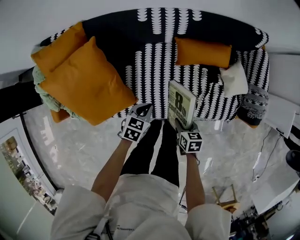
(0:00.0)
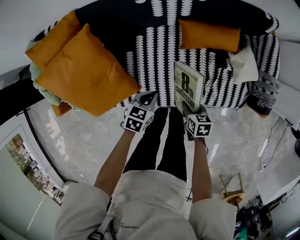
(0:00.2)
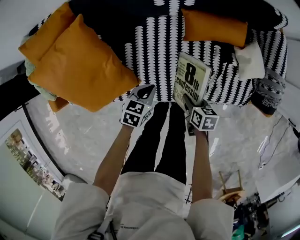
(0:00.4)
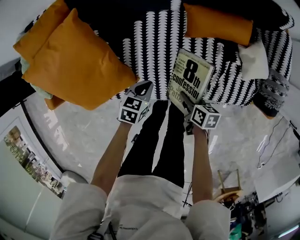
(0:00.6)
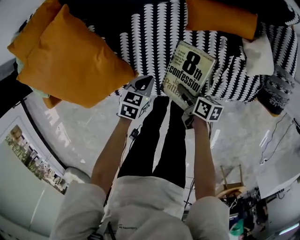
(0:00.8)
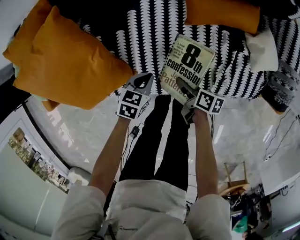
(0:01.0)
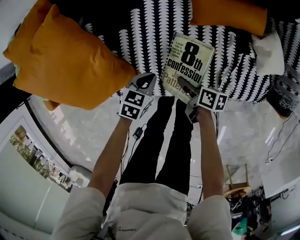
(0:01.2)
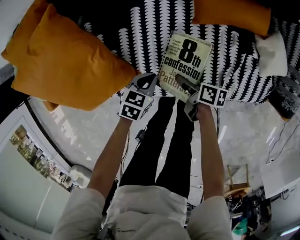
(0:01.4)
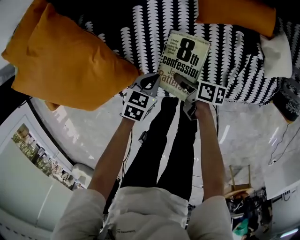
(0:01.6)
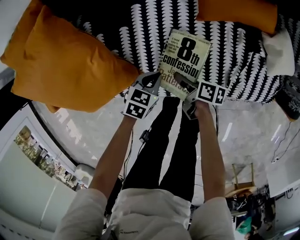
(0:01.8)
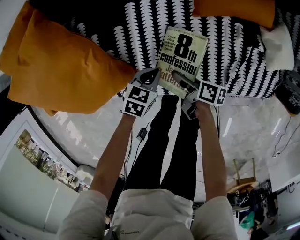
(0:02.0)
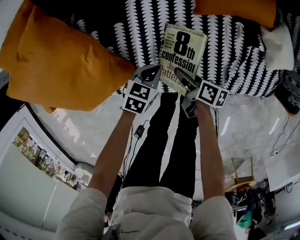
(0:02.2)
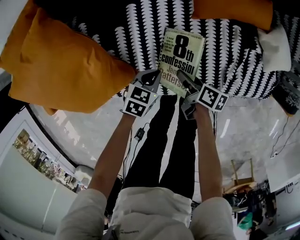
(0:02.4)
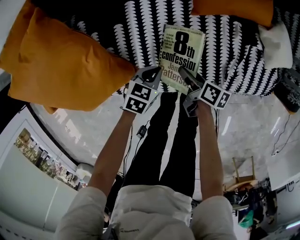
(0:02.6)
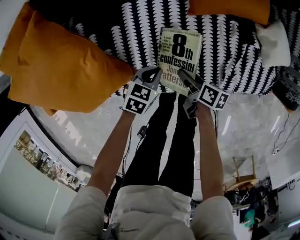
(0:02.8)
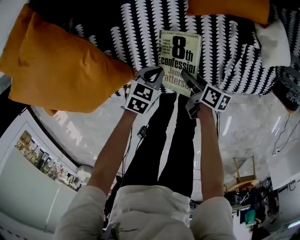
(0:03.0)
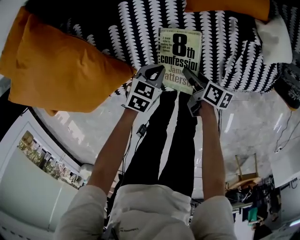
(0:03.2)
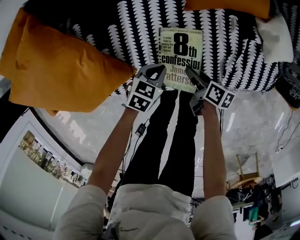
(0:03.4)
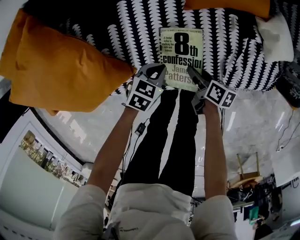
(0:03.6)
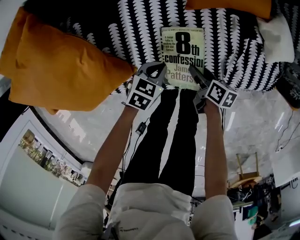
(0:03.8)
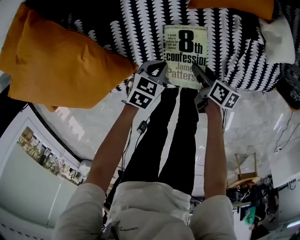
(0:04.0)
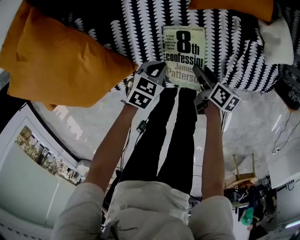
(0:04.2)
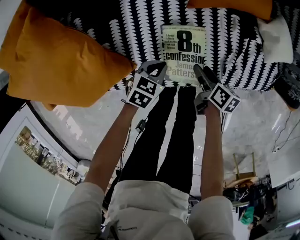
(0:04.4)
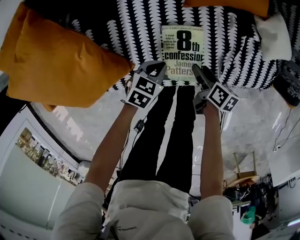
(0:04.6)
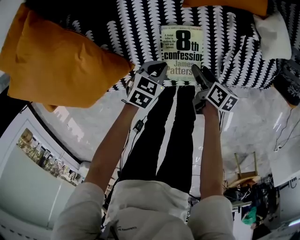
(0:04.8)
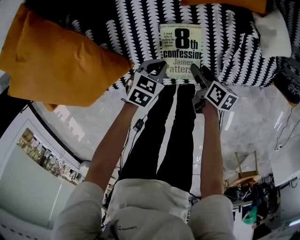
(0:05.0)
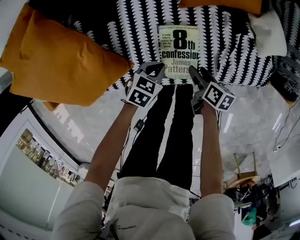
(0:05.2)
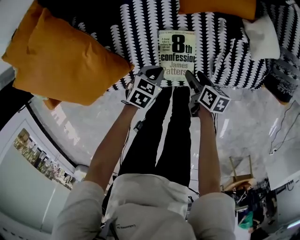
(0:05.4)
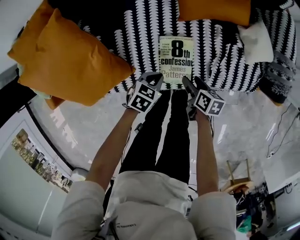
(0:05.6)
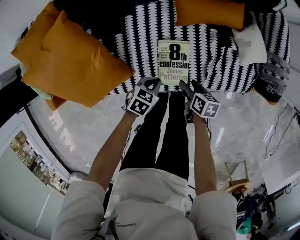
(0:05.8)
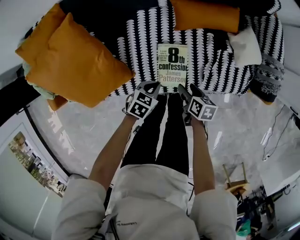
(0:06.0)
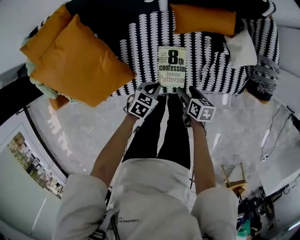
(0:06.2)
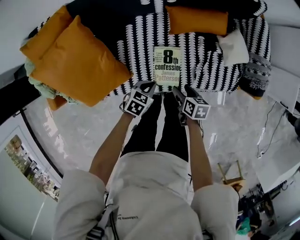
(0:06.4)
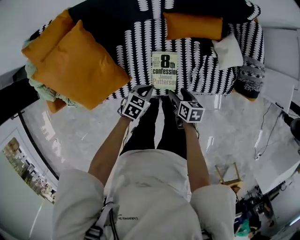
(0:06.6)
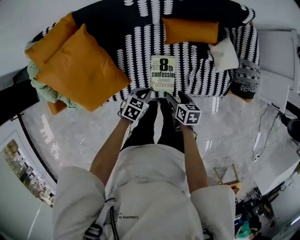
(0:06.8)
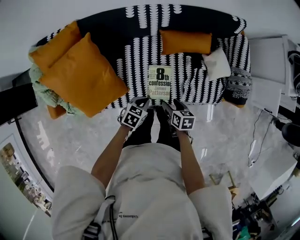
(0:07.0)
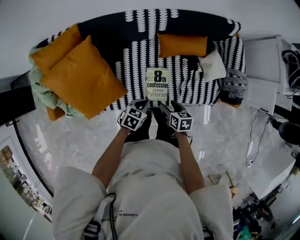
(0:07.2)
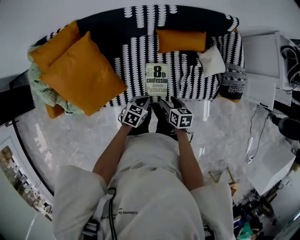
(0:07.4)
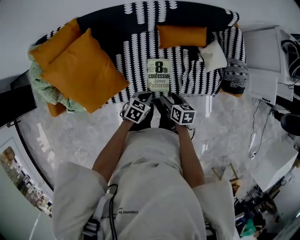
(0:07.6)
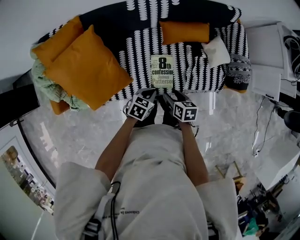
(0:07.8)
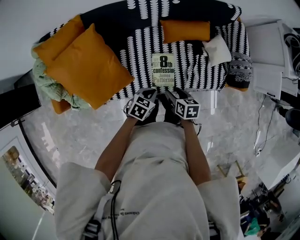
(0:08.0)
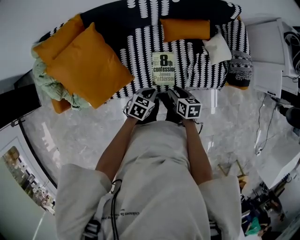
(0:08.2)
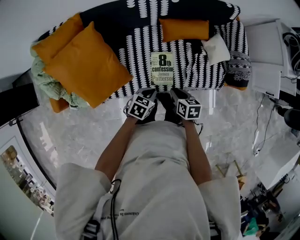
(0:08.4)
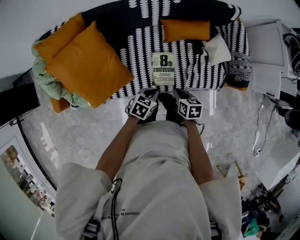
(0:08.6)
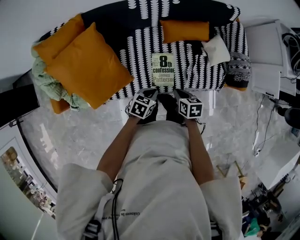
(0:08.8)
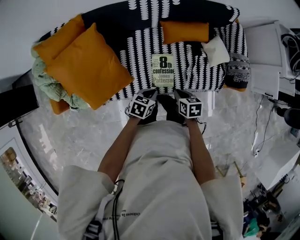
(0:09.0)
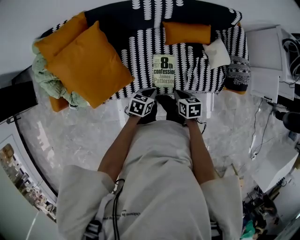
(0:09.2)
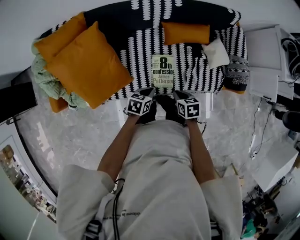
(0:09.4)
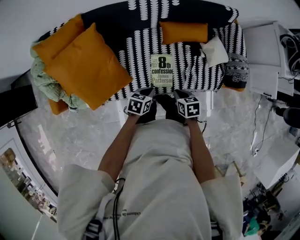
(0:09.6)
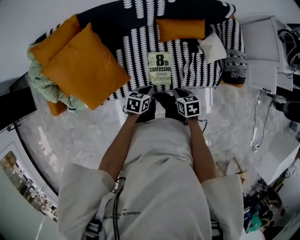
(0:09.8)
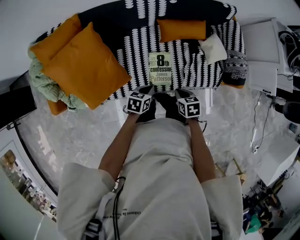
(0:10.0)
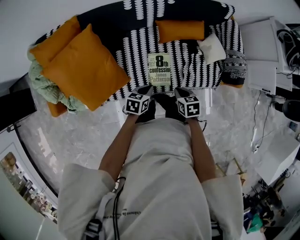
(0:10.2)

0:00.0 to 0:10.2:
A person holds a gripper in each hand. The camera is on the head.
0:00.0 to 0:01.4: The right gripper moves downward, to the left and forward, about 20 cm, and turns by about 40 degrees, while the left gripper is displaced downward and to the left by about 15 cm.
0:01.4 to 0:03.0: The right gripper moves to the right, approximately 10 cm, while the left gripper shifts about 10 cm to the right and downward.
0:03.0 to 0:04.4: The right gripper travels to the right by about 5 cm.
0:04.4 to 0:05.8: The grippers both shift upward by some 10 cm.
0:05.8 to 0:07.2: Both grippers move upward, roughly 15 cm.
0:07.2 to 0:08.8: The right gripper closes.
0:08.8 to 0:10.2: The grippers make only small movements.

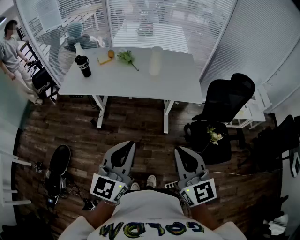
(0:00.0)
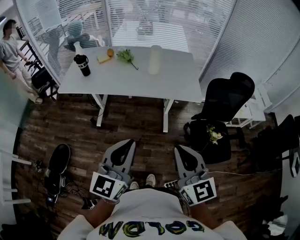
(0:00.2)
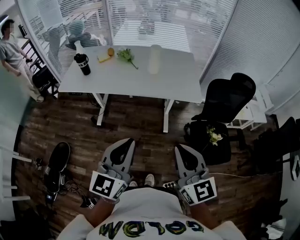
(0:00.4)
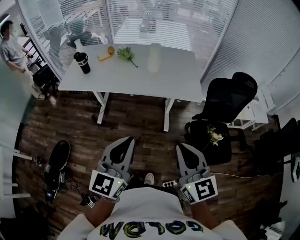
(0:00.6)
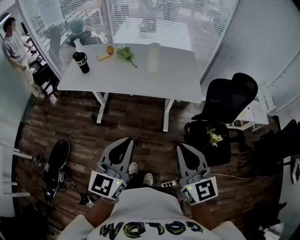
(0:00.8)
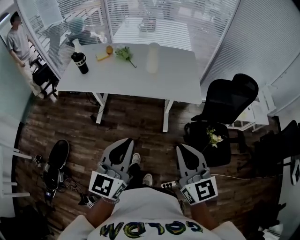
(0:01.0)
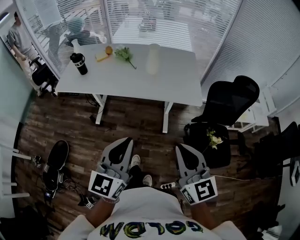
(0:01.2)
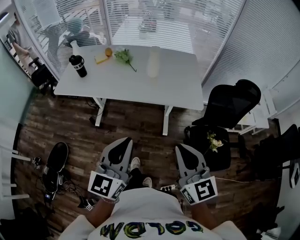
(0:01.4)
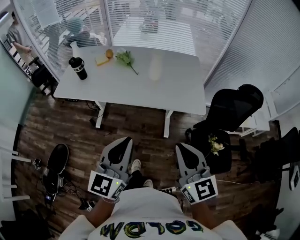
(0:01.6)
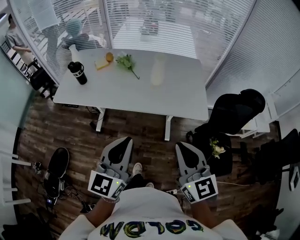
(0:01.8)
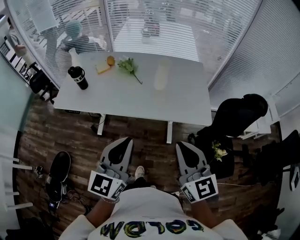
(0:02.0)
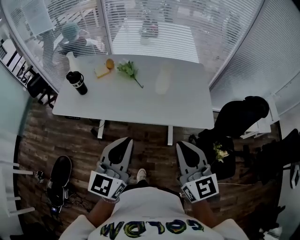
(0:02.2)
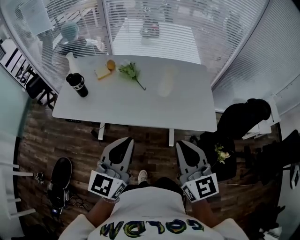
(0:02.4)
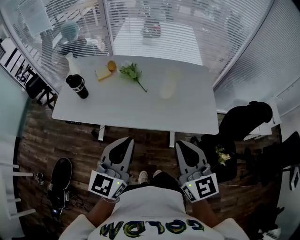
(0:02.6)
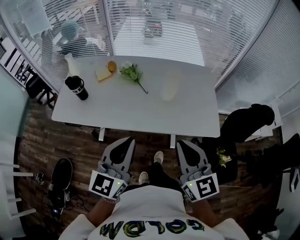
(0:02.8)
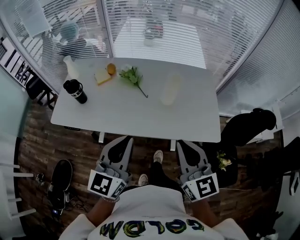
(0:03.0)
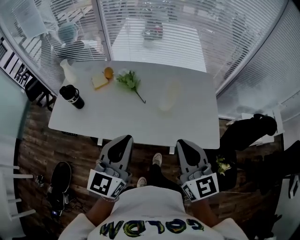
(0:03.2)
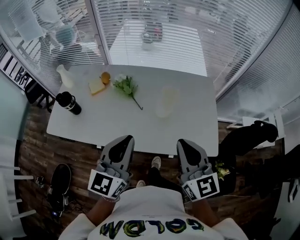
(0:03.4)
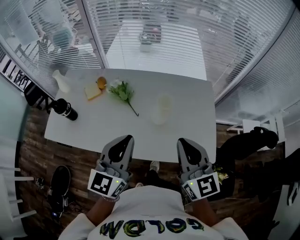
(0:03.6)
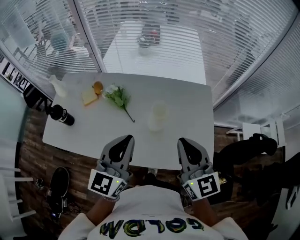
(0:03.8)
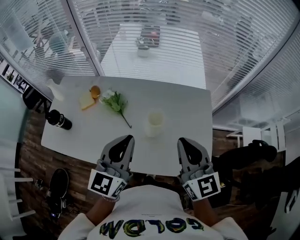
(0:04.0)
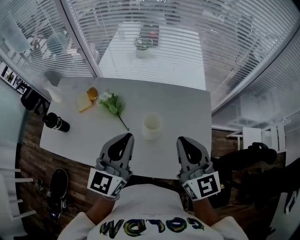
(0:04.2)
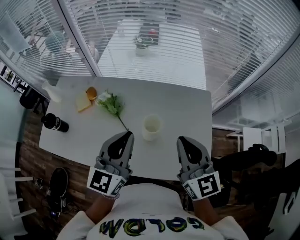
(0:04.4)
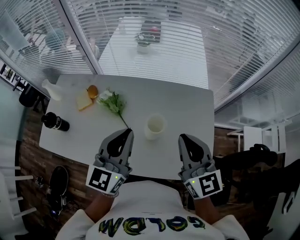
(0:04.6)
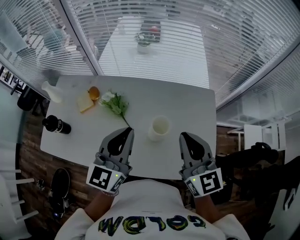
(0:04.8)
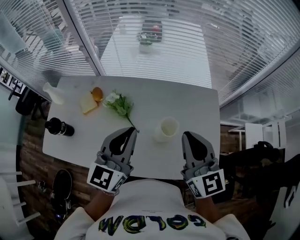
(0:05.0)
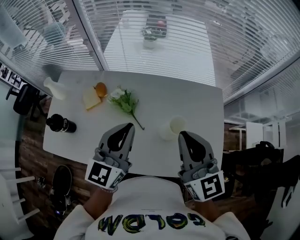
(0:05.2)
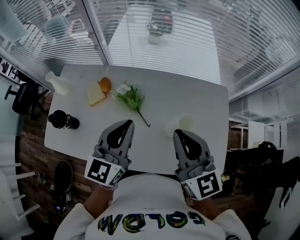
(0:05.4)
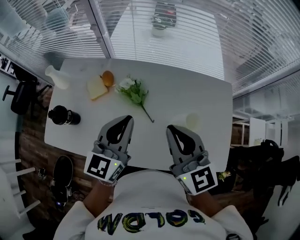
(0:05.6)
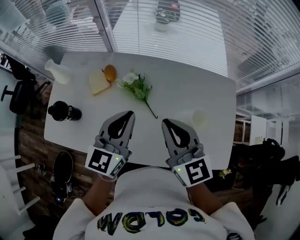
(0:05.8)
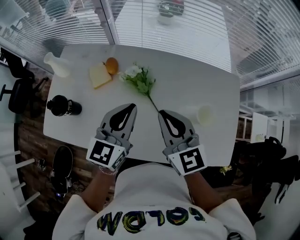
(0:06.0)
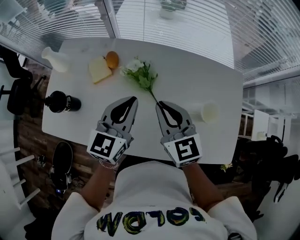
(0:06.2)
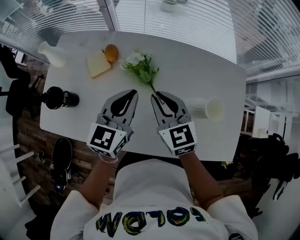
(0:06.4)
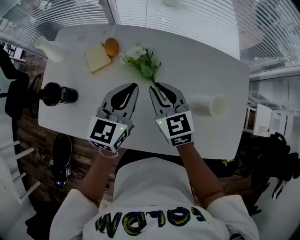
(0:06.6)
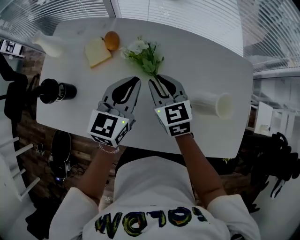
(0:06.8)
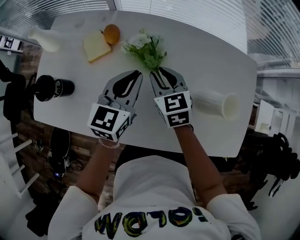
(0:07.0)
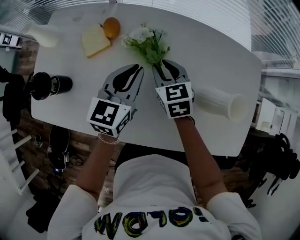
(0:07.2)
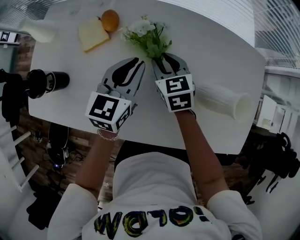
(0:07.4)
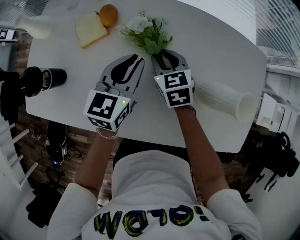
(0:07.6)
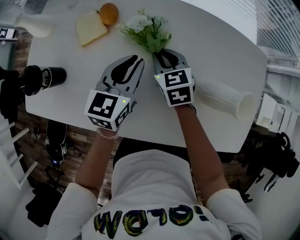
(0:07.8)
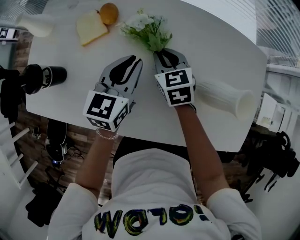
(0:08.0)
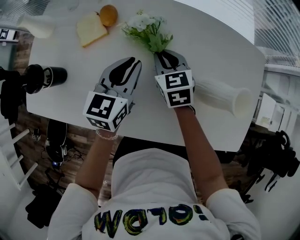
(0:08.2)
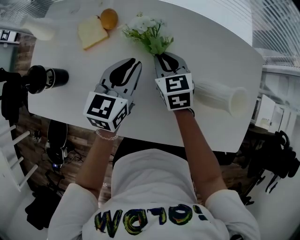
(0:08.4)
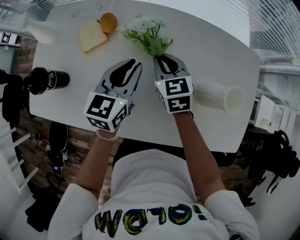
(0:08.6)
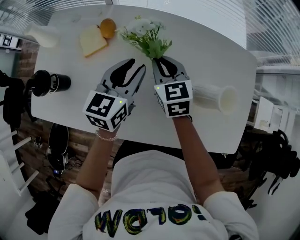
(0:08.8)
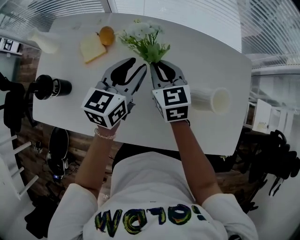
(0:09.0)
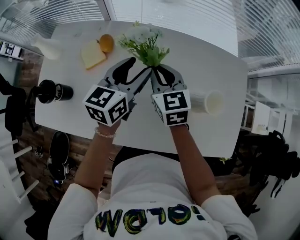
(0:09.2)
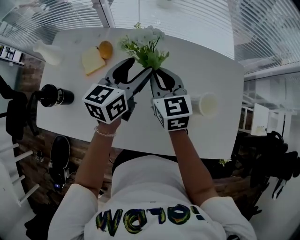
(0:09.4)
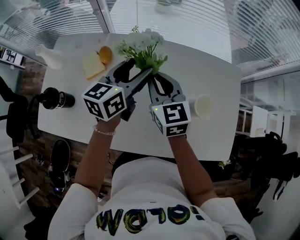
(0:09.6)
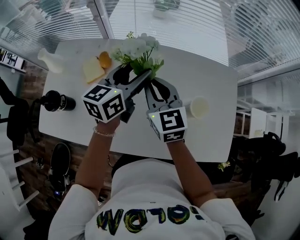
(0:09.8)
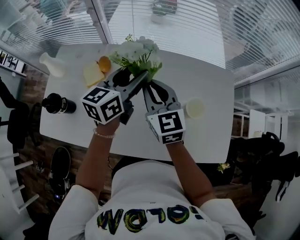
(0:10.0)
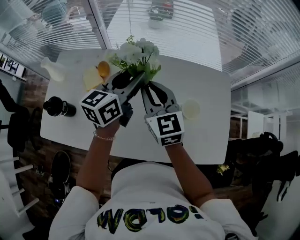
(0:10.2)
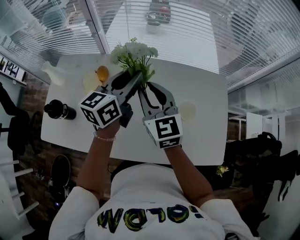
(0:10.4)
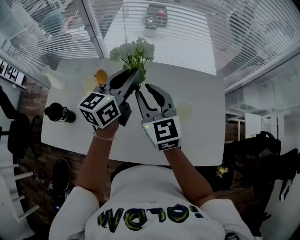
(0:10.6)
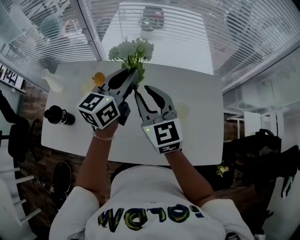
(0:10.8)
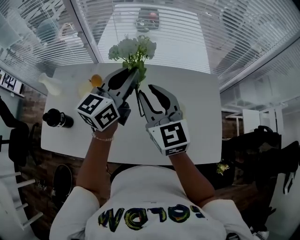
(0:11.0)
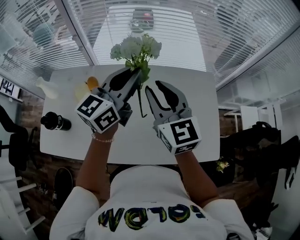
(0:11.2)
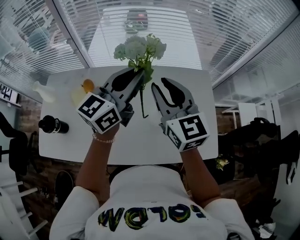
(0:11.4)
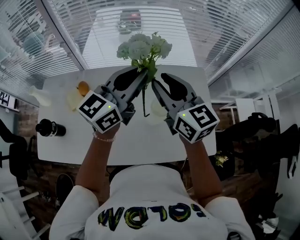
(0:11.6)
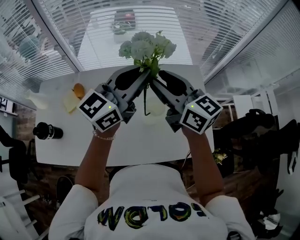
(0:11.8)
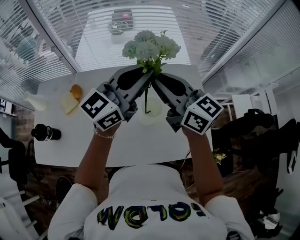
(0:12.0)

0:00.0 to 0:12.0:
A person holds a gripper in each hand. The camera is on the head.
0:00.0 to 0:01.6: Both grippers travel together forward, about 15 cm.
0:01.6 to 0:03.0: The left gripper heads forward and to the left, covering about 25 cm, while the right gripper goes roughly 25 cm forward.
0:03.0 to 0:04.4: Both grippers travel together forward and to the right, about 30 cm.
0:04.4 to 0:06.0: The left gripper travels to the left, downward and forward by some 20 cm. The right gripper shifts some 25 cm to the left.
0:06.0 to 0:07.6: The right gripper shifts some 25 cm downward and forward, rotates approximately 30 degrees, and opens up, while the left gripper travels downward and forward by roughly 15 cm.
0:07.6 to 0:09.0: The left gripper heads upward, covering some 5 cm, while the right gripper shifts about 10 cm upward.
0:09.0 to 0:10.4: The grippers both shift upward by about 15 cm. The left gripper opens, then closes once more.
0:10.4 to 0:12.0: Both grippers travel together to the right and upward, some 20 cm. The right gripper turns by some 20 degrees, while the left gripper rotates about 30 degrees.

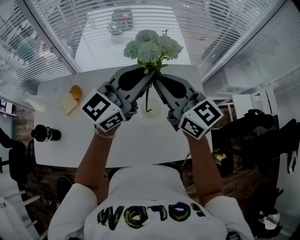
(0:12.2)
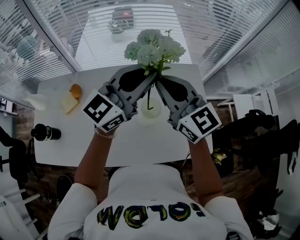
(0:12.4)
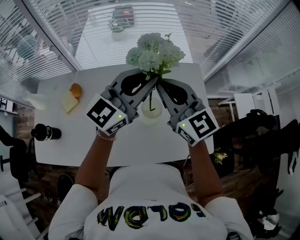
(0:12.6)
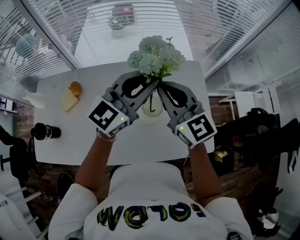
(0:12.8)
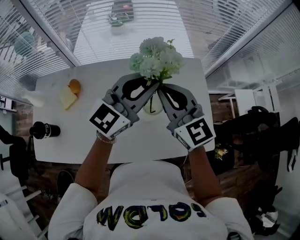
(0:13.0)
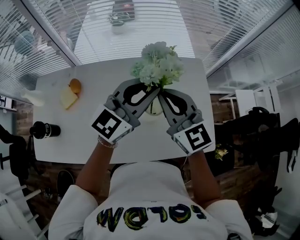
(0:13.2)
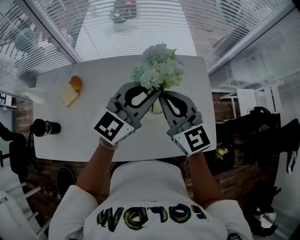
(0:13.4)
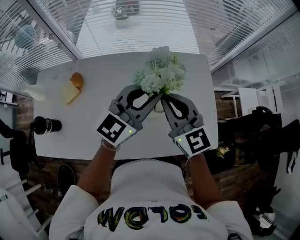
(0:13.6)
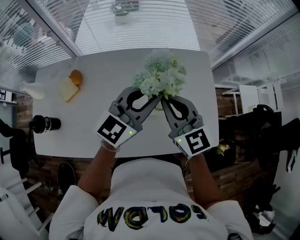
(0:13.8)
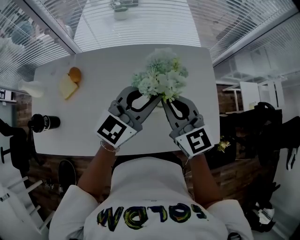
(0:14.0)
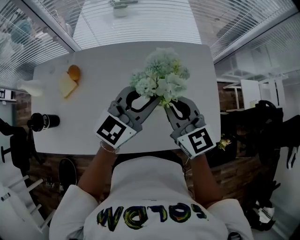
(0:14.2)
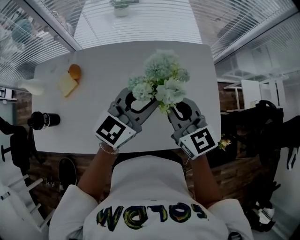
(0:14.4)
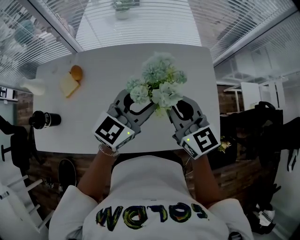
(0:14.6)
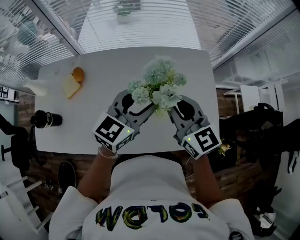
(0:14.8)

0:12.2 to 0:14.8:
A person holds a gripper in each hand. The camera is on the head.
0:12.2 to 0:13.4: Both grippers move downward, roughly 10 cm.
0:13.4 to 0:14.8: The left gripper is displaced downward by roughly 5 cm, and opens its fingers.
